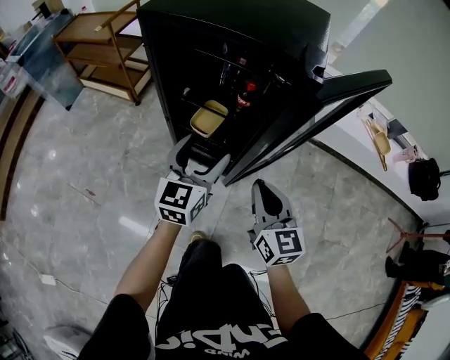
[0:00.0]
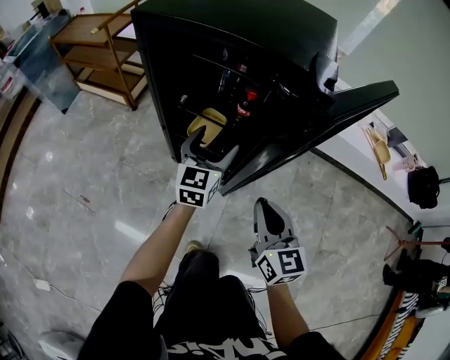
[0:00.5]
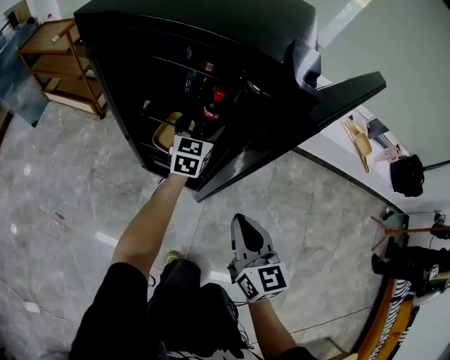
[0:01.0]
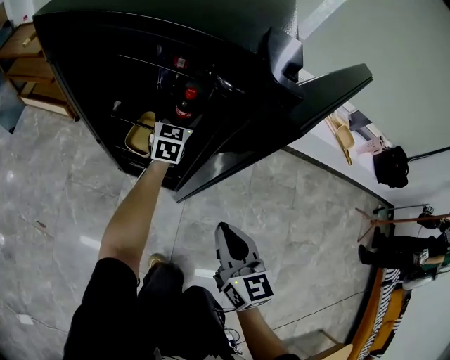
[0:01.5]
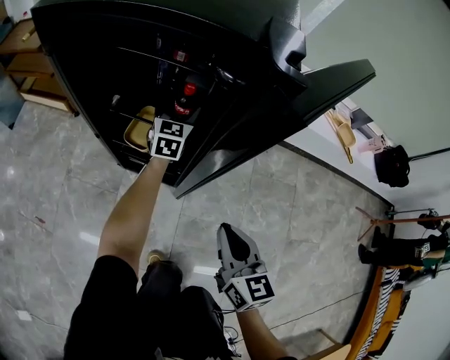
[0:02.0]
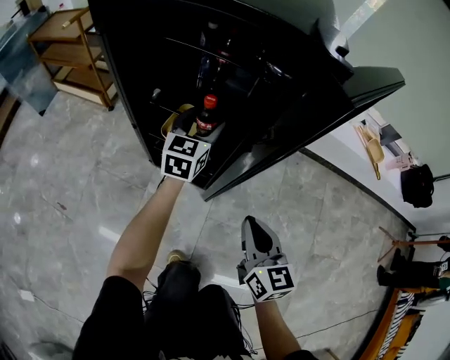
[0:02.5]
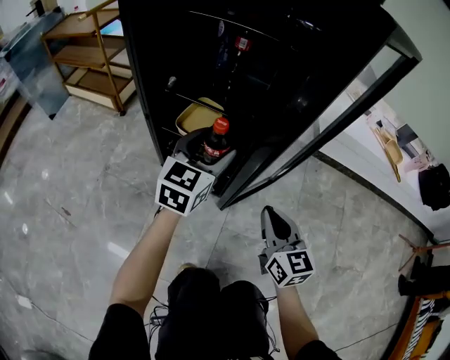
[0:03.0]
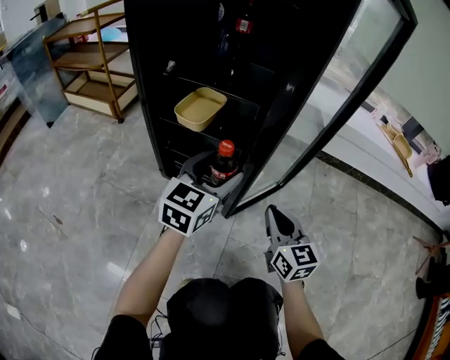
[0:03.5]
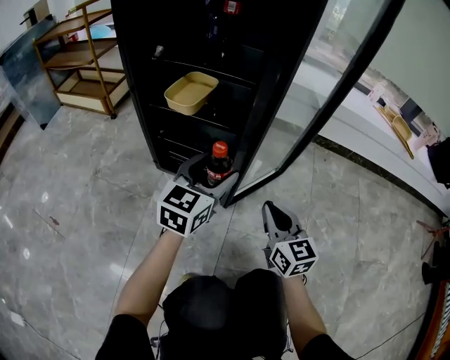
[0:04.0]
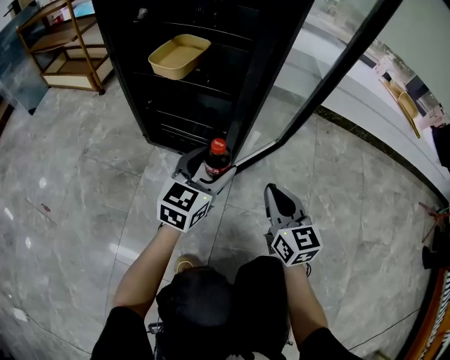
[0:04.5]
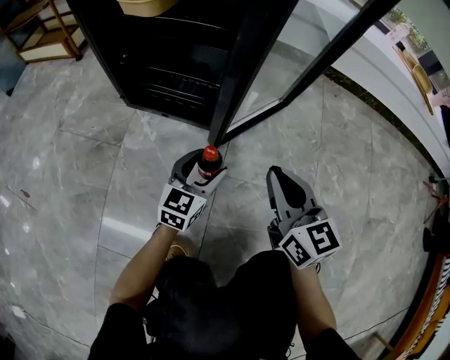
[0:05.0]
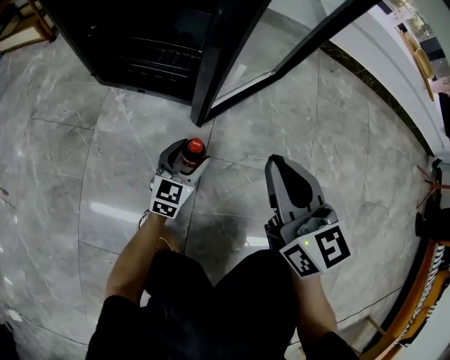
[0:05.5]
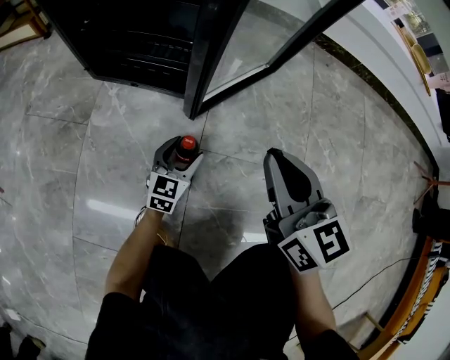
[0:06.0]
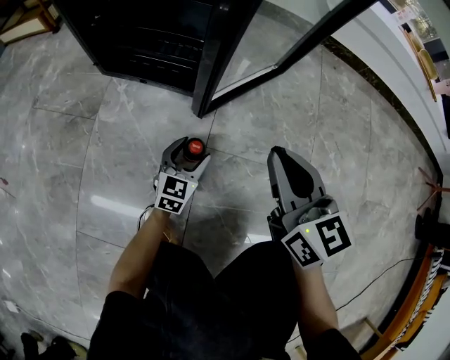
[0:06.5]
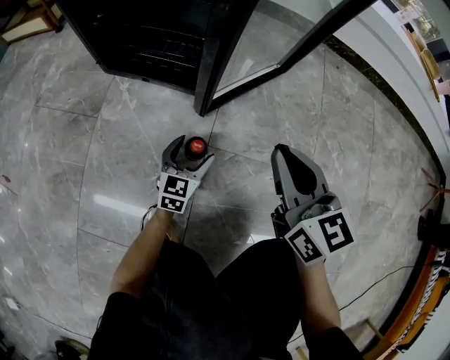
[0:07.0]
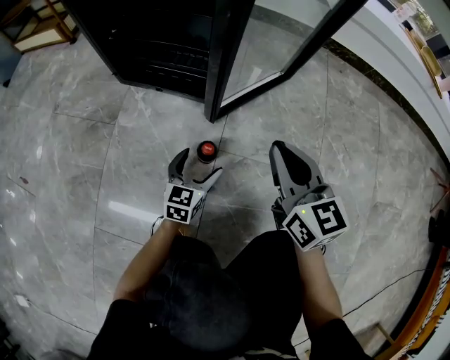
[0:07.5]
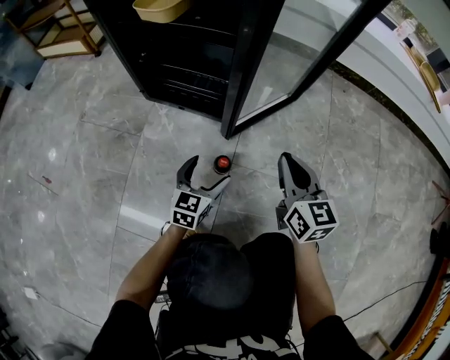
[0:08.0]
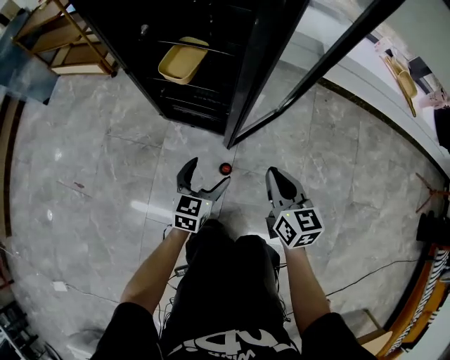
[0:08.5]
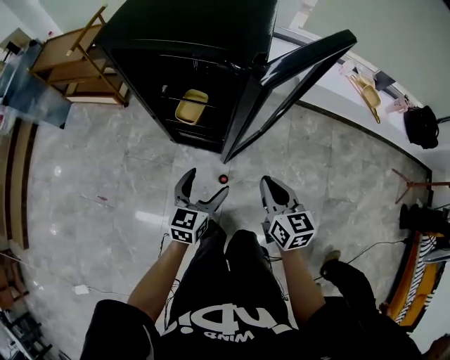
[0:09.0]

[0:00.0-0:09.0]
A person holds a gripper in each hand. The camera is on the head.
0:00.0 to 0:02.0: The right gripper heads downward and to the right, covering approximately 10 cm, while the left gripper goes some 30 cm forward and downward.
0:02.0 to 0:04.5: The left gripper moves backward and downward, roughly 40 cm. Meanwhile the right gripper is displaced downward by about 35 cm.
0:04.5 to 0:07.0: The right gripper travels downward by roughly 5 cm. The left gripper shifts about 35 cm downward.
0:07.0 to 0:09.0: Both grippers move upward, about 60 cm.

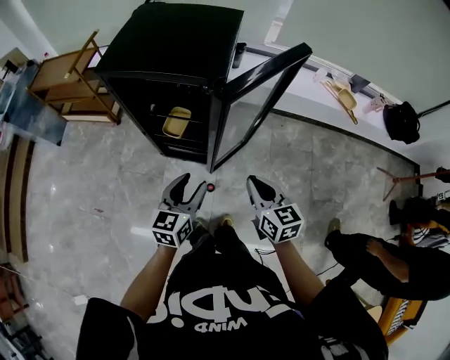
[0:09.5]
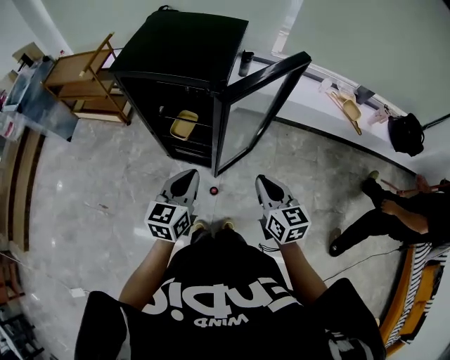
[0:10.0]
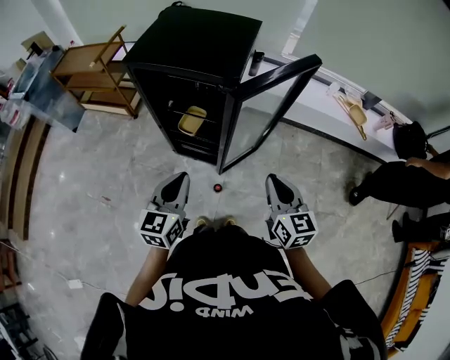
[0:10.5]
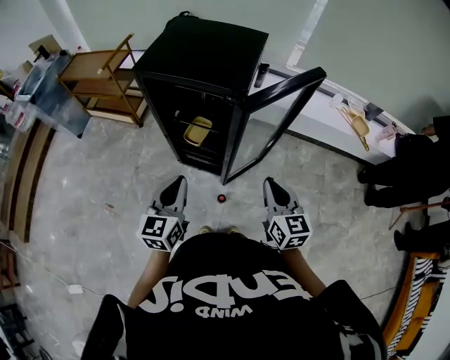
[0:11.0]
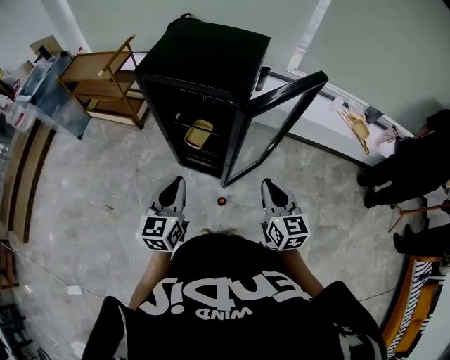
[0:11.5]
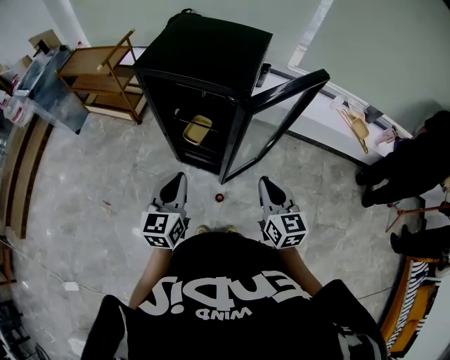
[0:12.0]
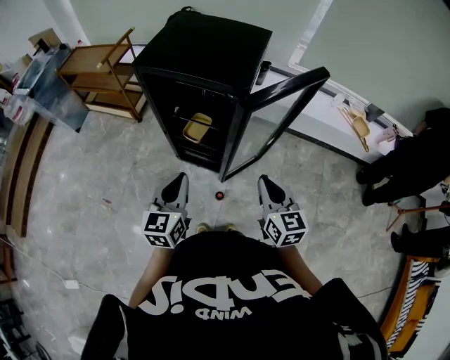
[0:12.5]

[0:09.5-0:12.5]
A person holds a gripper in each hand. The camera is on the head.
0:09.5 to 0:11.0: The right gripper heads upward, covering approximately 5 cm, while the left gripper goes roughly 10 cm upward and to the left, and closes its fingers.
0:11.0 to 0:12.5: There are only small adjustments of the grippers.

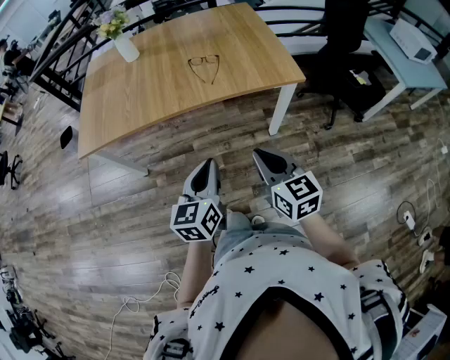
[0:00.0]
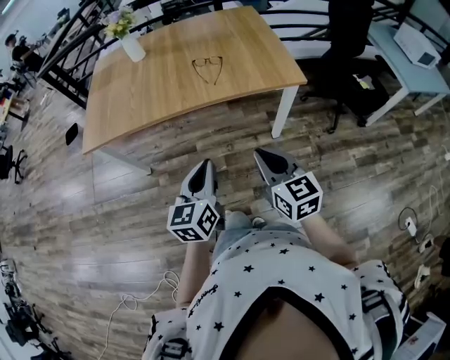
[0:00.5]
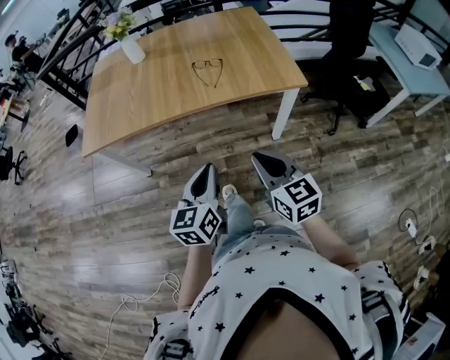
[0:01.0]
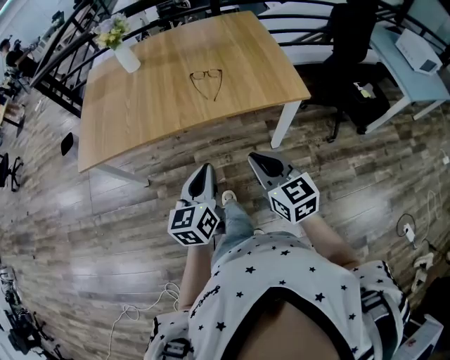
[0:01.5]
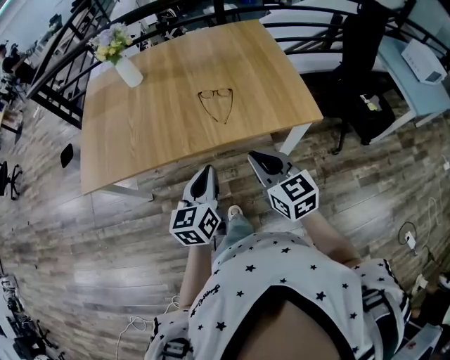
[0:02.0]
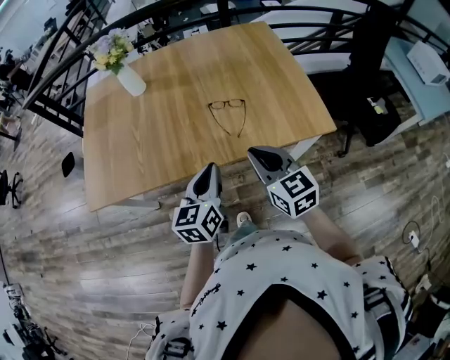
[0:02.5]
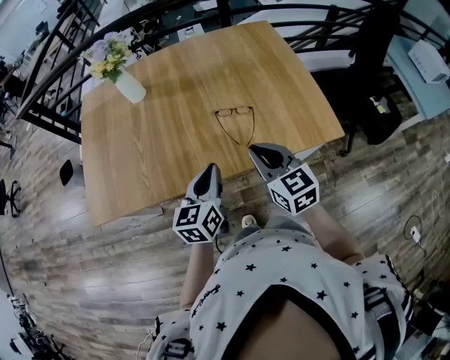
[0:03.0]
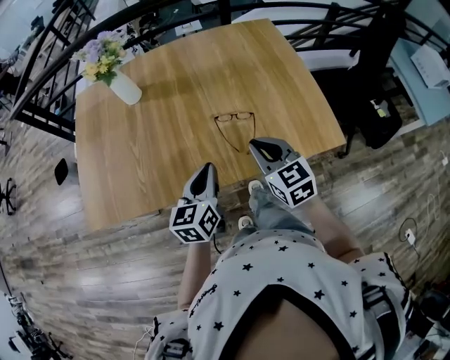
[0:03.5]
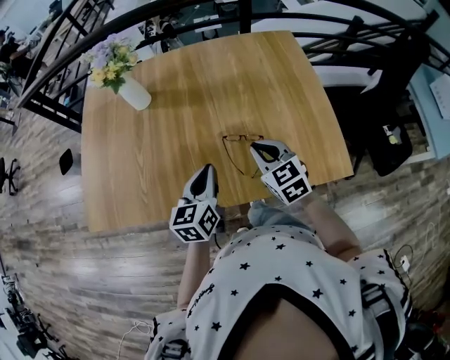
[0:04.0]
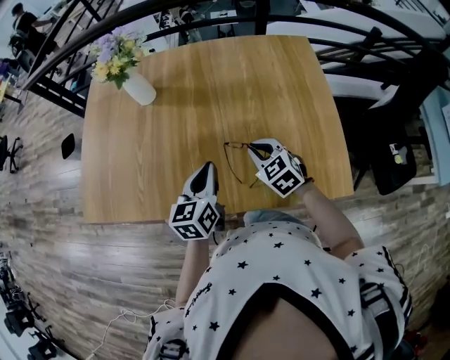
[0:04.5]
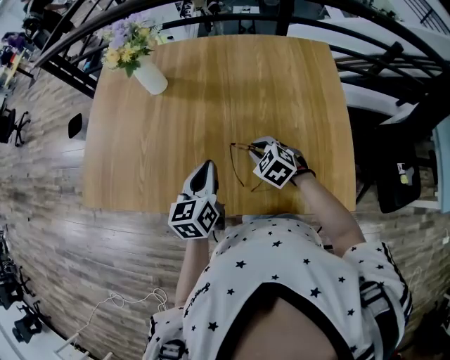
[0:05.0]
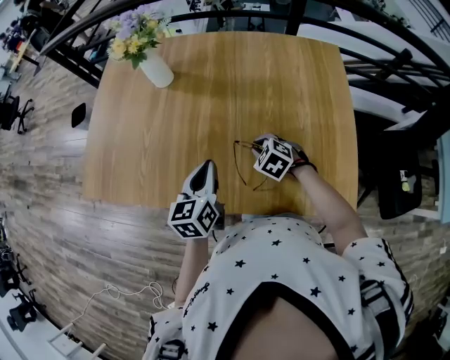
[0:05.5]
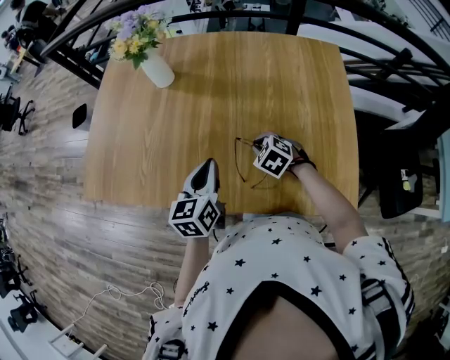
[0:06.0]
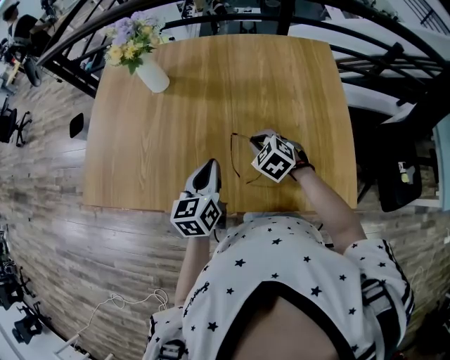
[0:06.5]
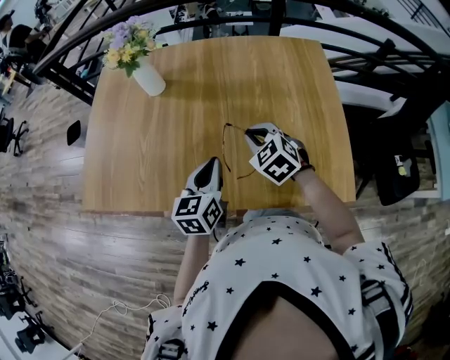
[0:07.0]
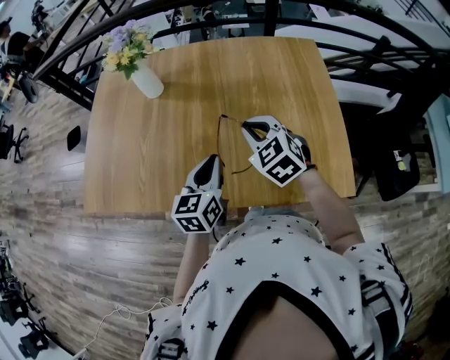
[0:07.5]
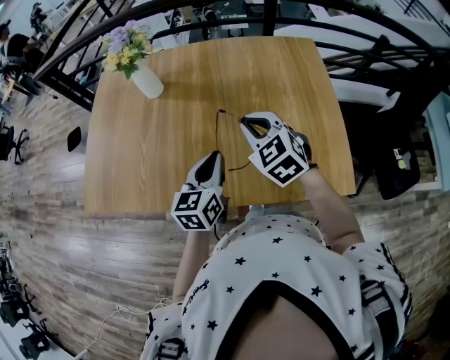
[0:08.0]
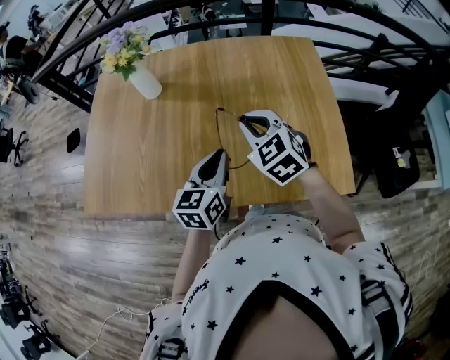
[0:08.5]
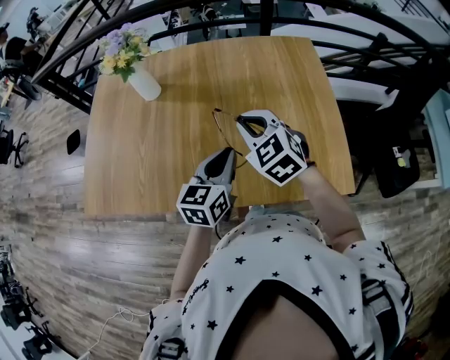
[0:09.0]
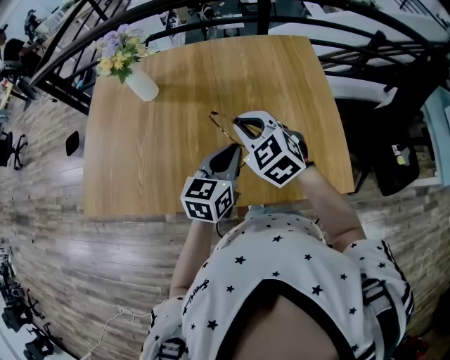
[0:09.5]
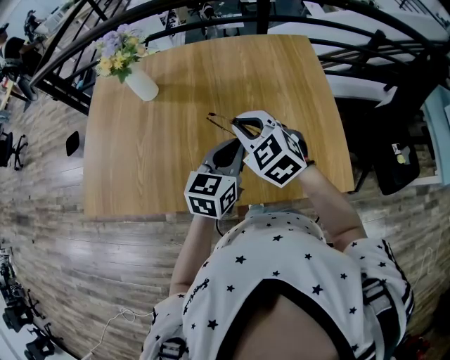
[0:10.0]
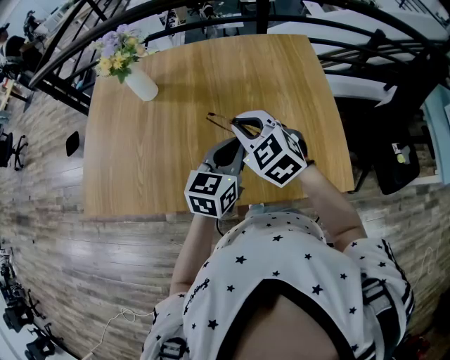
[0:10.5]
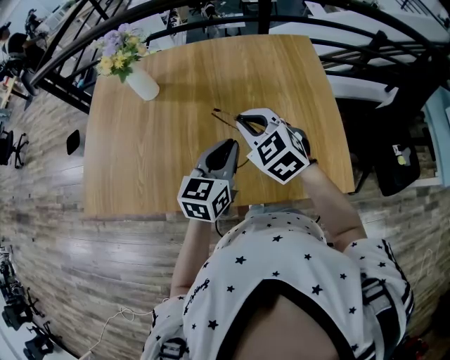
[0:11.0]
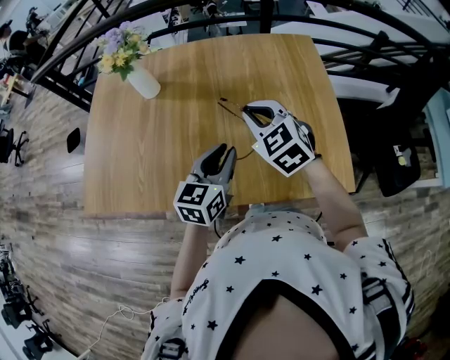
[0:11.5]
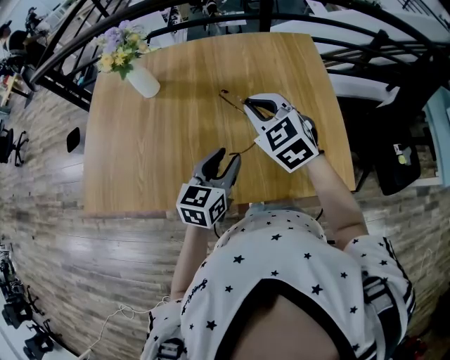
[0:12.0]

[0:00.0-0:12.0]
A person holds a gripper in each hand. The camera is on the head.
0:00.0 to 0:02.0: The grippers both shift forward by about 20 cm.
0:02.0 to 0:04.0: The two grippers go approximately 25 cm forward.
0:04.0 to 0:06.0: The right gripper is displaced downward and forward by some 15 cm, and angles its fingers downward, by about 30 degrees.
0:06.0 to 0:08.0: The right gripper is displaced upward by roughly 20 cm, and swivels approximately 30 degrees.
0:08.0 to 0:10.0: The left gripper moves to the right, approximately 10 cm.
0:10.0 to 0:12.0: The left gripper shifts by approximately 5 cm, and opens.

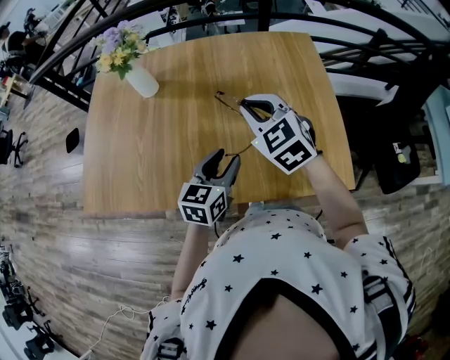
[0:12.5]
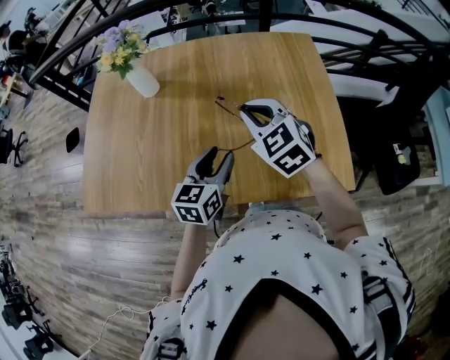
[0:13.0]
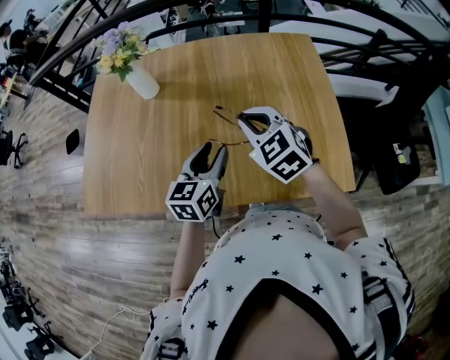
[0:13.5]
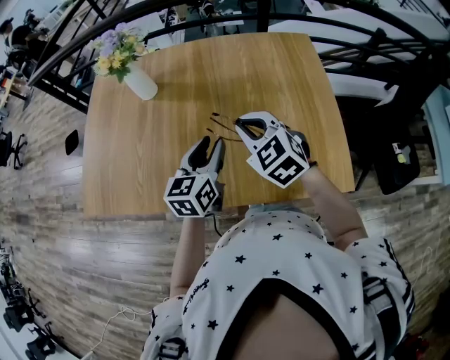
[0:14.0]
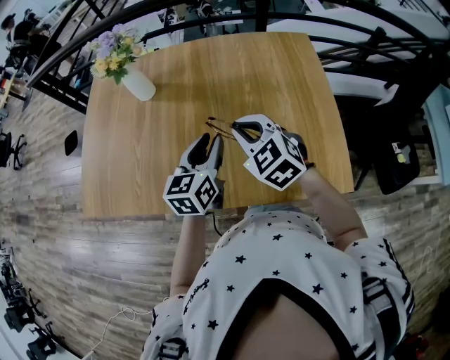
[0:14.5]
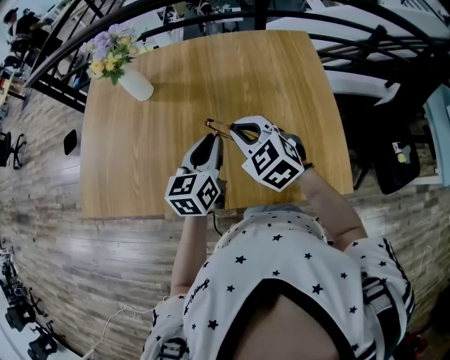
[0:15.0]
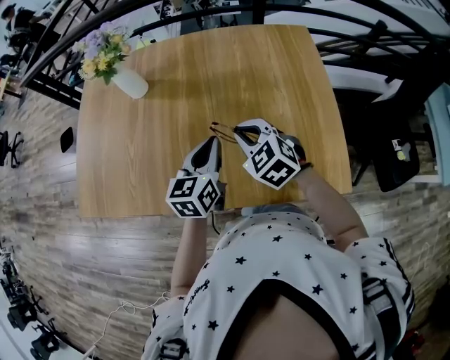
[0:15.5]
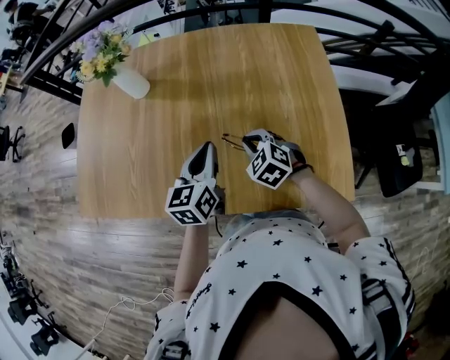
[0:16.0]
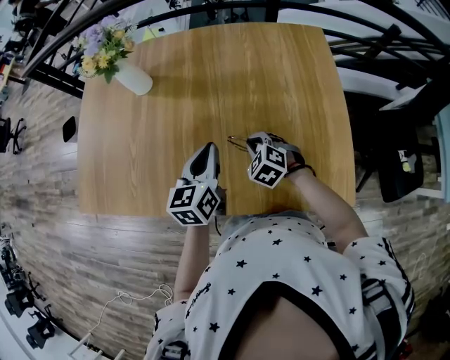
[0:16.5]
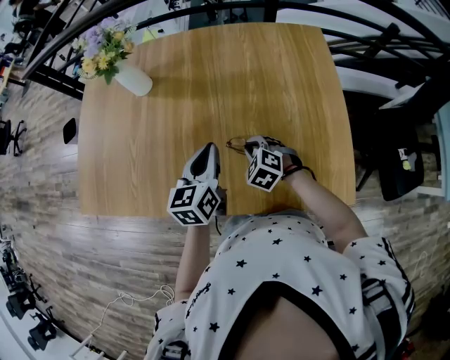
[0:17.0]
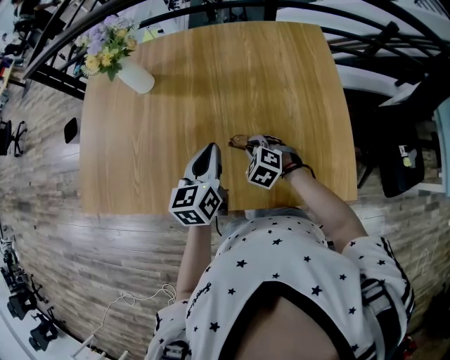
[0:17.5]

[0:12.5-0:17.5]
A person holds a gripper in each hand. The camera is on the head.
0:12.5 to 0:15.0: The right gripper moves about 5 cm; the left gripper heads forward, covering roughly 5 cm, and closes up.
0:15.0 to 0:17.5: The right gripper heads downward, covering some 20 cm, and changes its angle by approximately 30 degrees.
